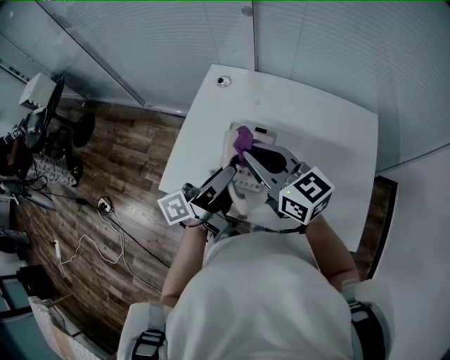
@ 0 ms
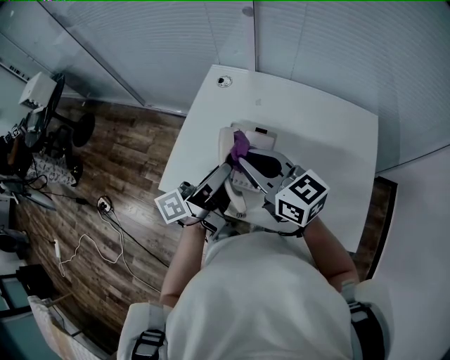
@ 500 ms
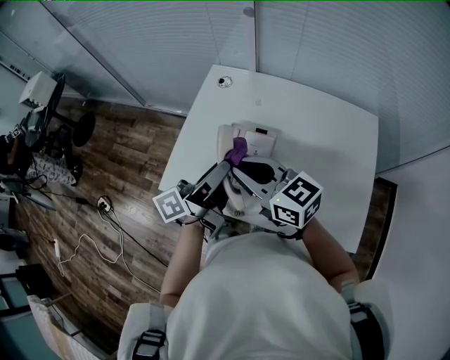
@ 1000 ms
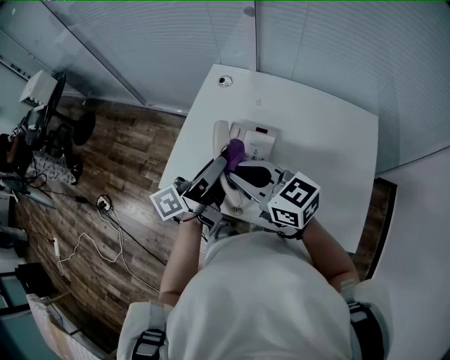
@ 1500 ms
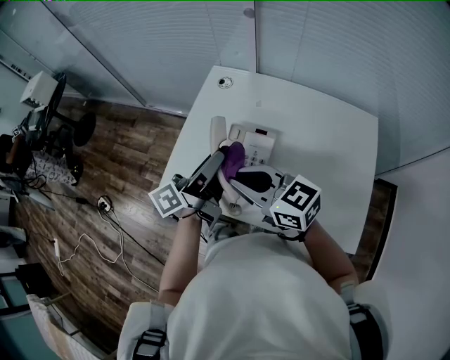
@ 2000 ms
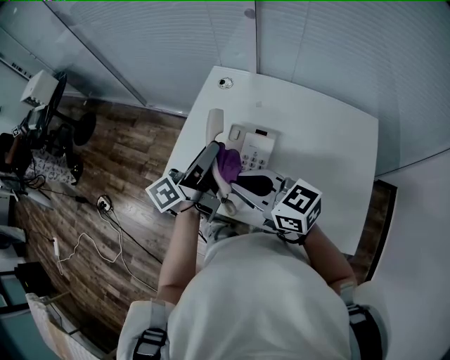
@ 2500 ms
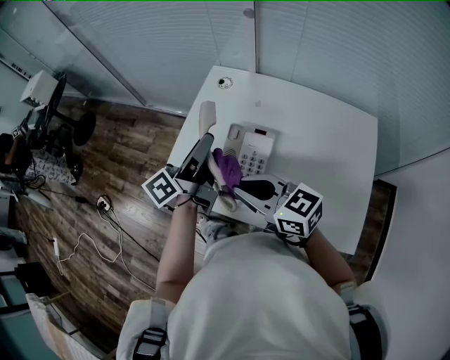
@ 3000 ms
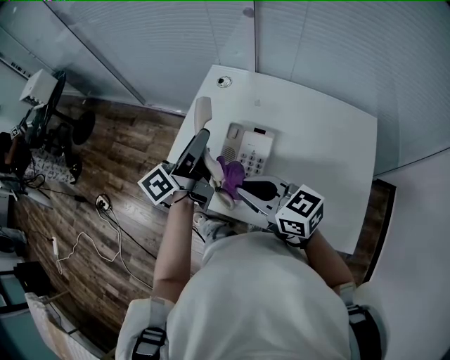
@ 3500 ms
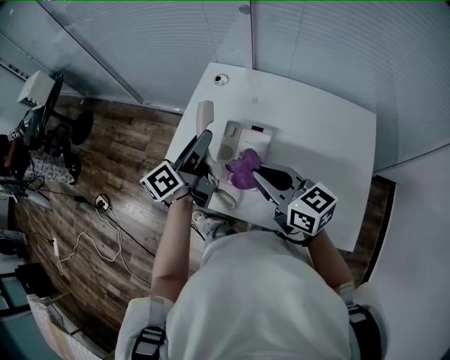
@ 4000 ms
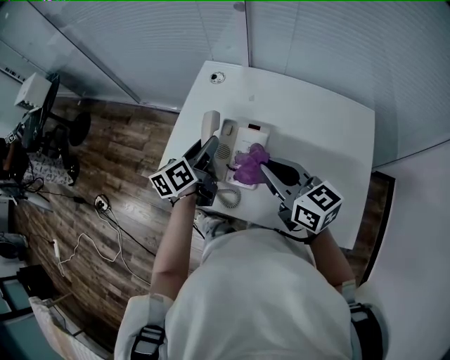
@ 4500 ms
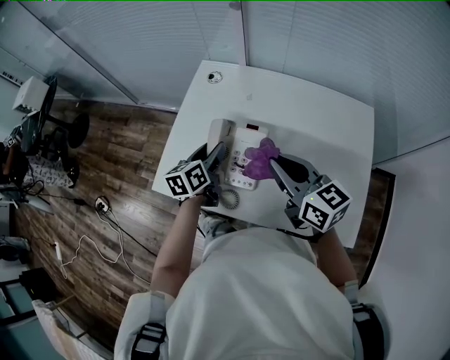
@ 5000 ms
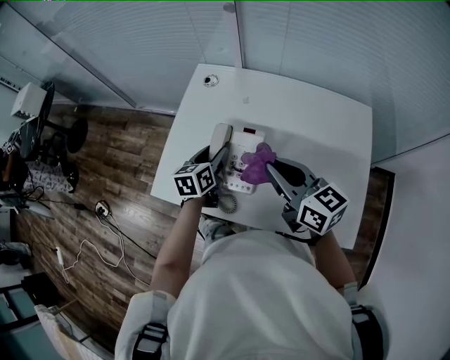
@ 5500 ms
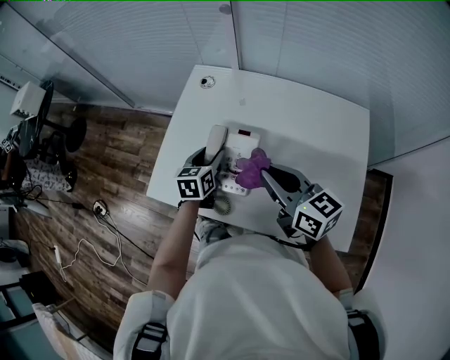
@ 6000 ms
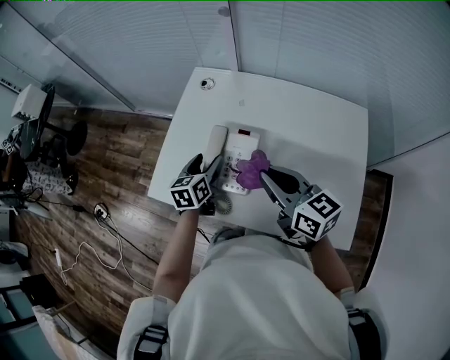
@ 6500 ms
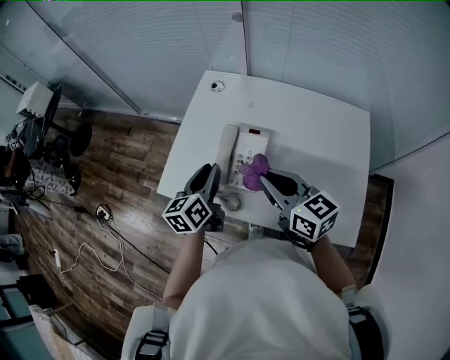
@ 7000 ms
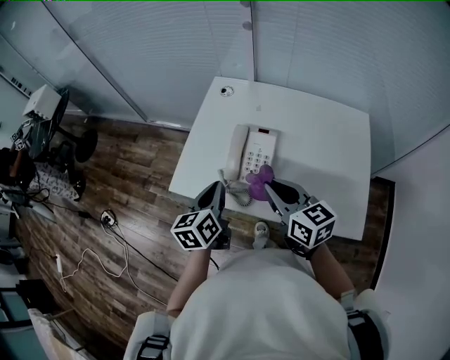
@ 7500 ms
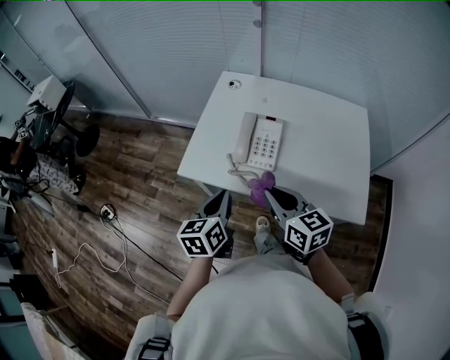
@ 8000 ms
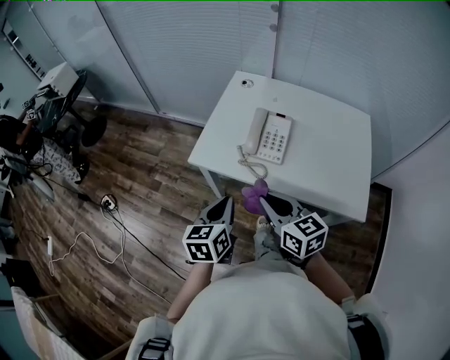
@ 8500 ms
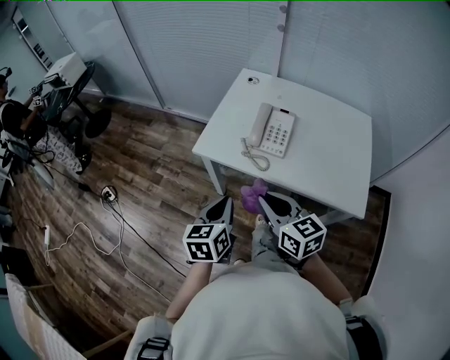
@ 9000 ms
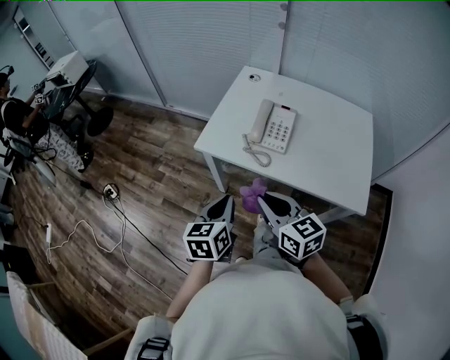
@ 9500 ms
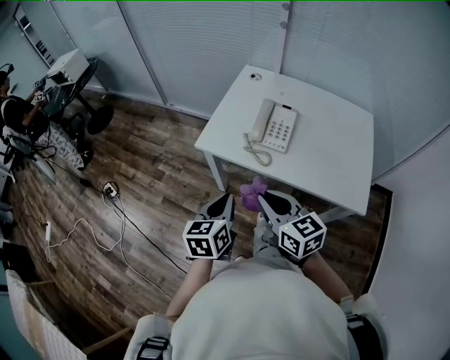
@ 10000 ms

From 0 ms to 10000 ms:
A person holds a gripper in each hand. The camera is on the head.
From 0 ms to 2000 ms: The right gripper changes place by about 5 cm.
From 2000 ms to 4000 ms: The right gripper travels to the right by approximately 5 cm; the left gripper travels forward by some 5 cm.
From 4000 ms to 6000 ms: The right gripper goes about 5 cm to the right; the left gripper is displaced downward by roughly 15 cm, and angles its fingers downward, by approximately 40 degrees.
From 6000 ms to 8000 ms: The right gripper shifts about 20 cm backward and to the left. Meanwhile the left gripper travels backward, to the left and upward by roughly 30 cm, and closes up.
From 8000 ms to 10000 ms: The two grippers go some 15 cm backward and to the left.

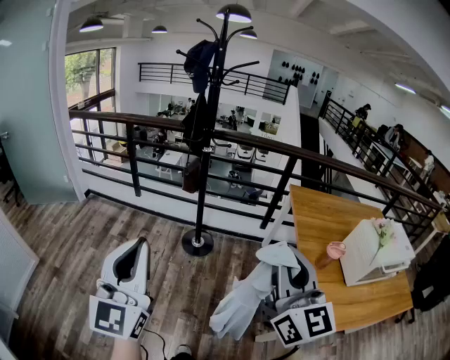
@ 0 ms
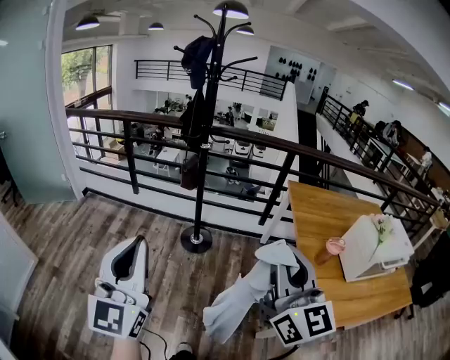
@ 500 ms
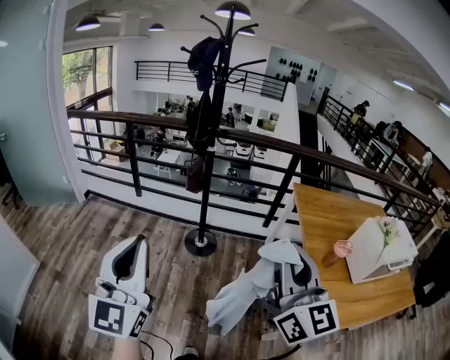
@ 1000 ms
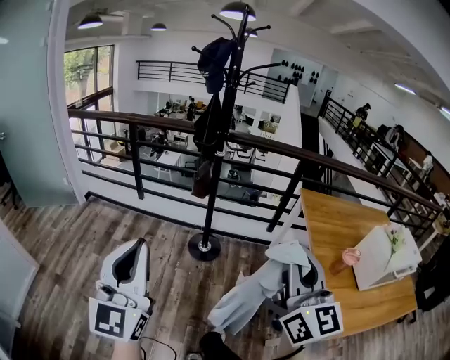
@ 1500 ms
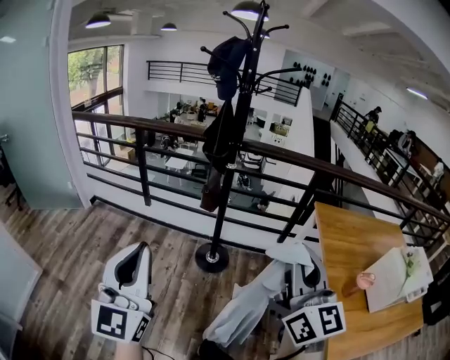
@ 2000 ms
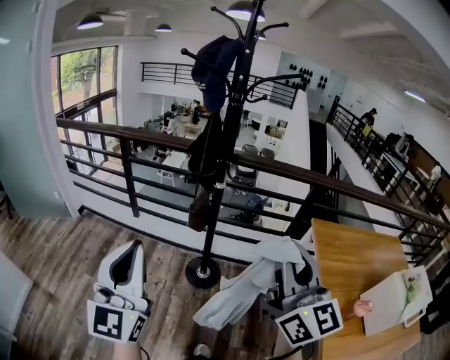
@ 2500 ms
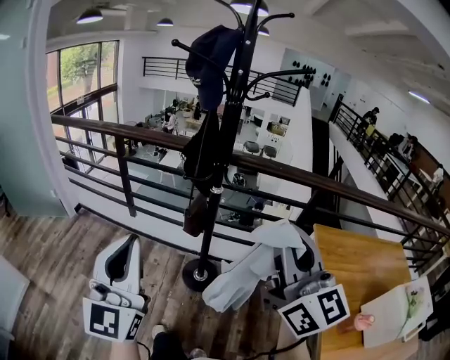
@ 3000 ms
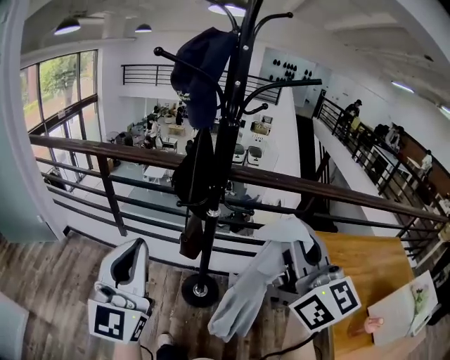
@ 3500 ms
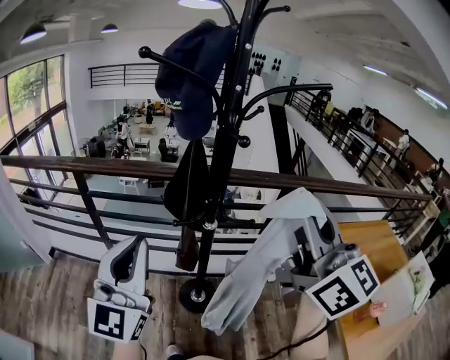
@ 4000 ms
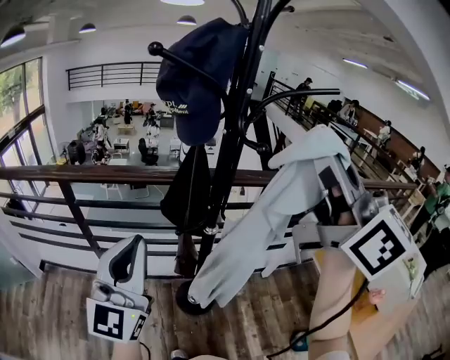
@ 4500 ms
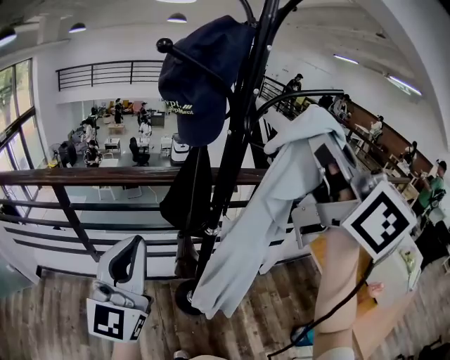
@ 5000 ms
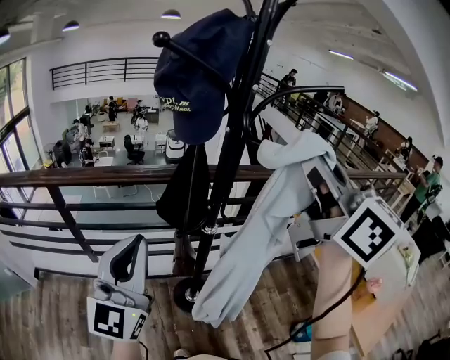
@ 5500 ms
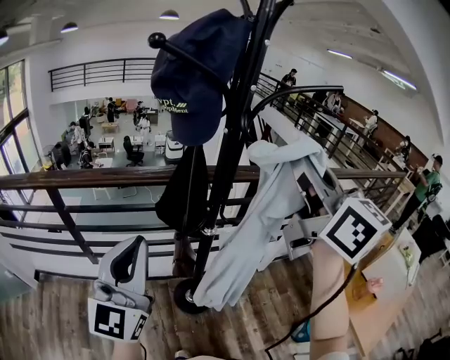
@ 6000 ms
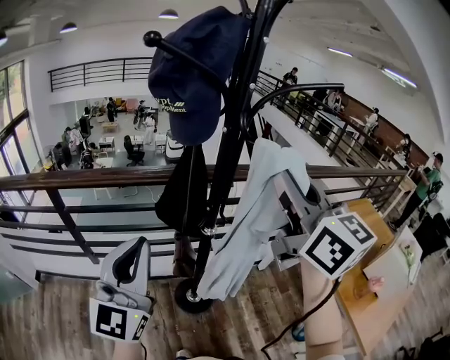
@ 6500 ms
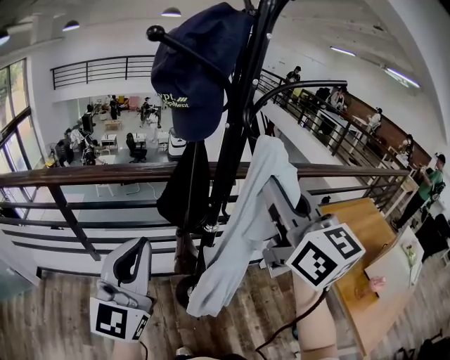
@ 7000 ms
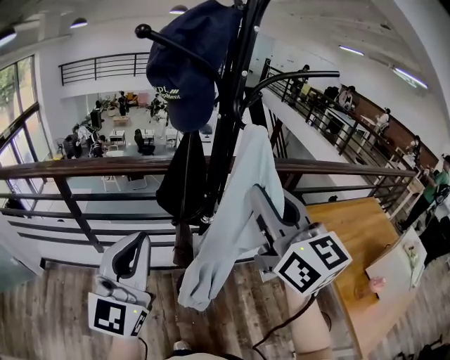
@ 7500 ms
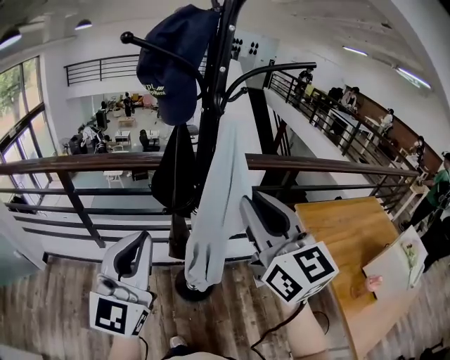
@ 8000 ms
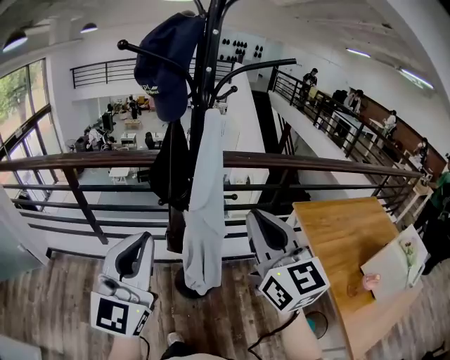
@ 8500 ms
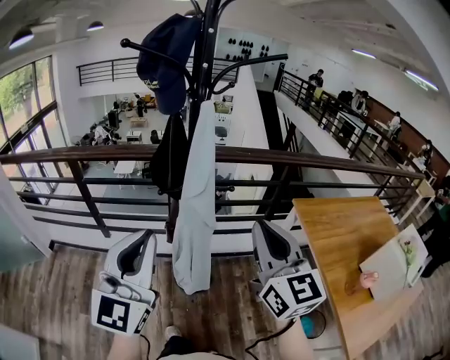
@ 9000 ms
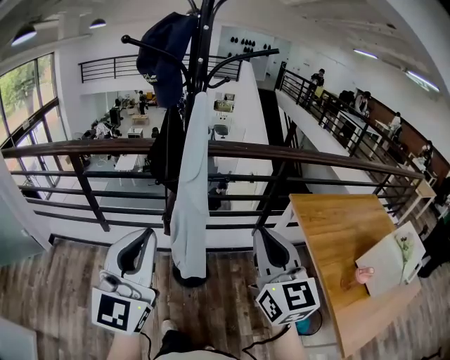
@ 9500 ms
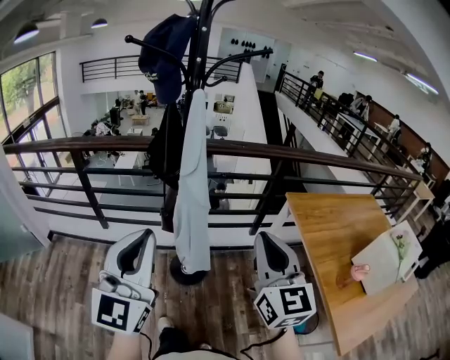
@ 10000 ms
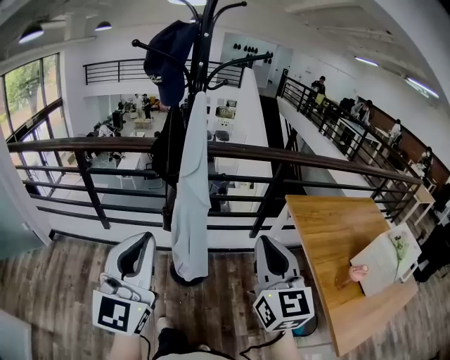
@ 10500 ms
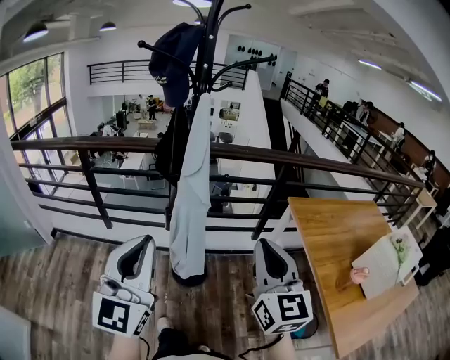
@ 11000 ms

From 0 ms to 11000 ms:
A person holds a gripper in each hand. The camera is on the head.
From 0 ms to 2000 ms: The grippers both shift forward and to the left by approximately 20 cm.
From 2000 ms to 3500 ms: Both grippers move forward, approximately 30 cm.
From 3500 ms to 5500 ms: The right gripper moves forward, upward and to the left, roughly 20 cm, while the left gripper shifts about 20 cm forward and to the left, and turns by roughly 20 degrees.
From 5500 ms to 7500 ms: The right gripper goes roughly 15 cm downward.
From 7500 ms to 9000 ms: The right gripper heads backward, to the right and downward, covering roughly 20 cm; the left gripper heads backward and to the right, covering about 15 cm.
From 9000 ms to 11000 ms: Both grippers move backward, roughly 10 cm.

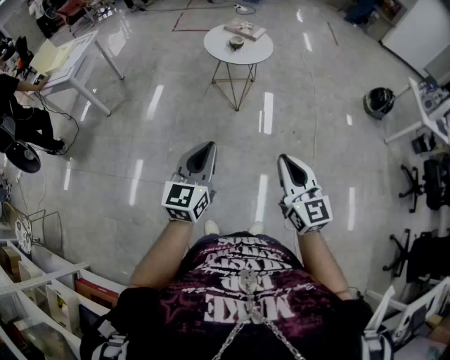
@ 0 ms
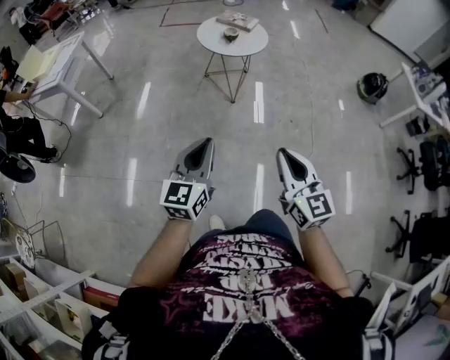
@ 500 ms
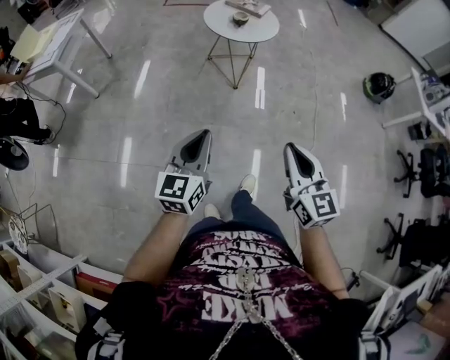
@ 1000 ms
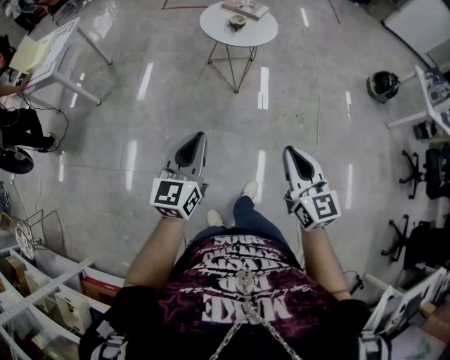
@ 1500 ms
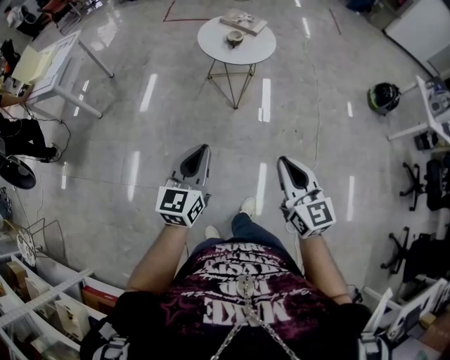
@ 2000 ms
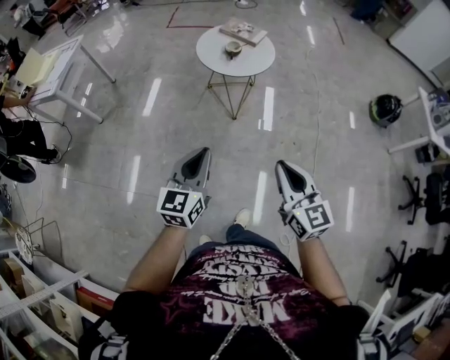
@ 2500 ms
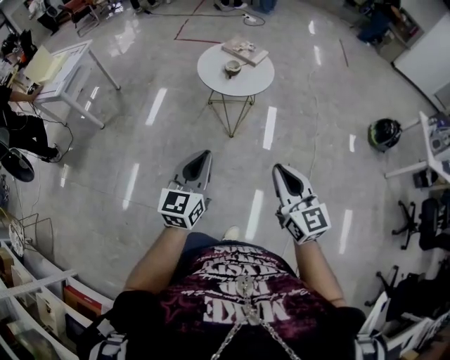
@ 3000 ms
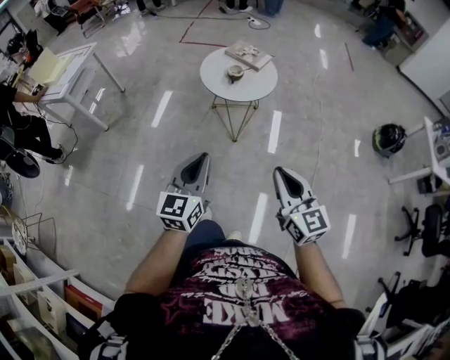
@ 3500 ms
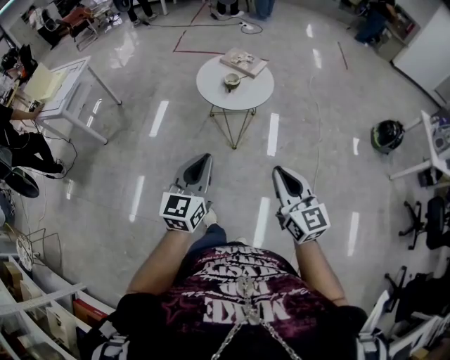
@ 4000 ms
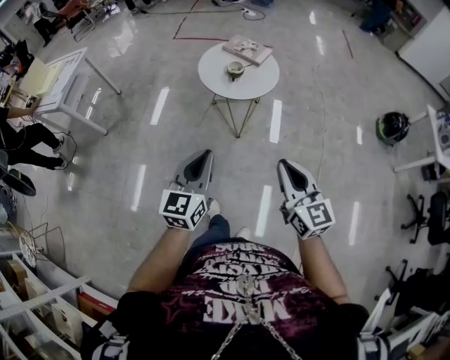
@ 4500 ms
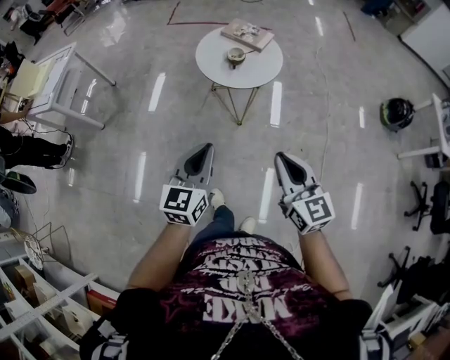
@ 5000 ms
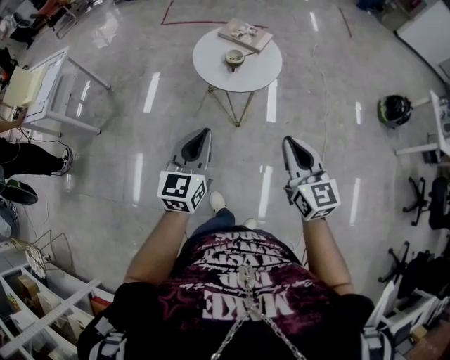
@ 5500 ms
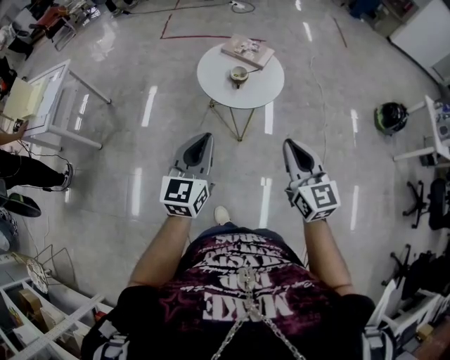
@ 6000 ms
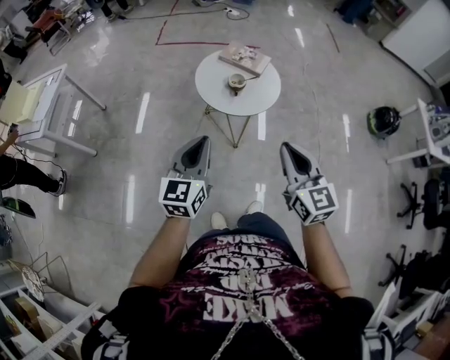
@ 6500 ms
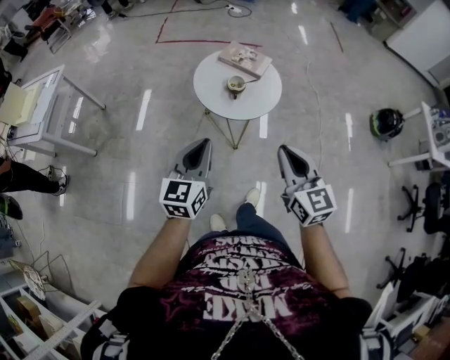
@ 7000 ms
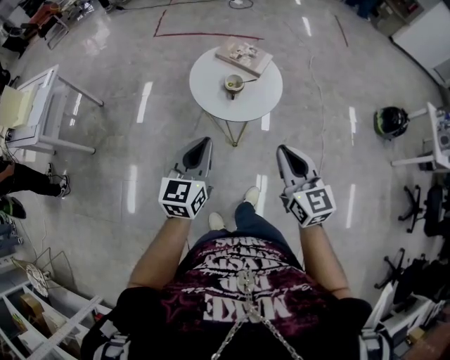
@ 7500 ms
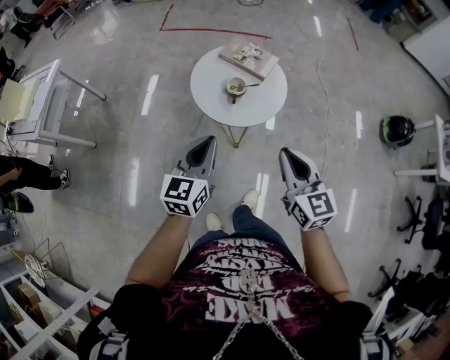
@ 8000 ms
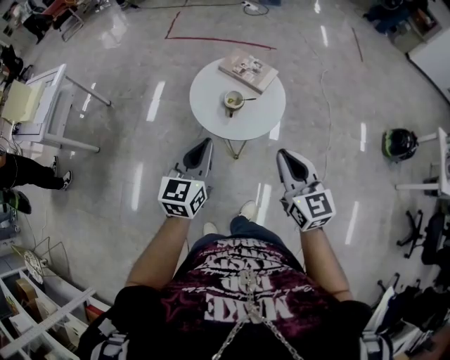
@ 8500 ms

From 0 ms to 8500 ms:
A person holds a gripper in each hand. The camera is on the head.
From 0 ms to 2000 ms: Both grippers move forward, about 15 cm.
From 2000 ms to 4000 ms: The grippers both shift forward and to the right by about 15 cm.
From 4000 ms to 6500 ms: Both grippers move forward and to the left, approximately 20 cm.
From 6500 ms to 8500 ms: The two grippers go some 20 cm forward and to the right.
